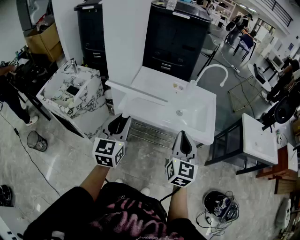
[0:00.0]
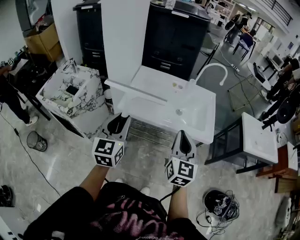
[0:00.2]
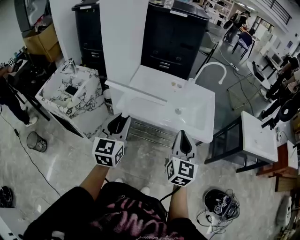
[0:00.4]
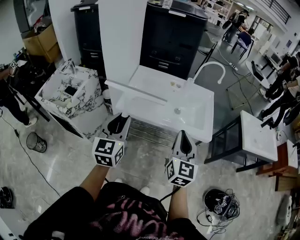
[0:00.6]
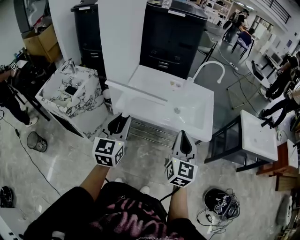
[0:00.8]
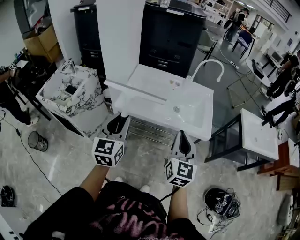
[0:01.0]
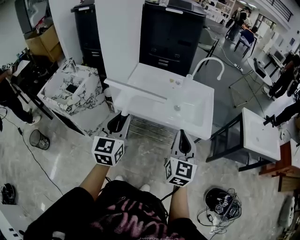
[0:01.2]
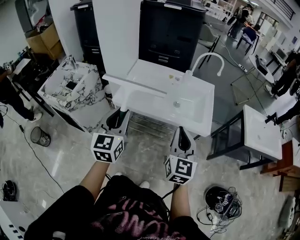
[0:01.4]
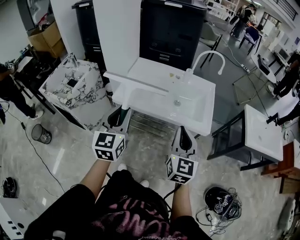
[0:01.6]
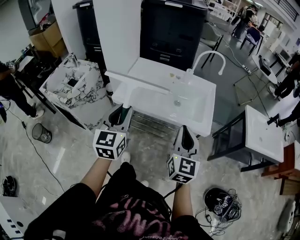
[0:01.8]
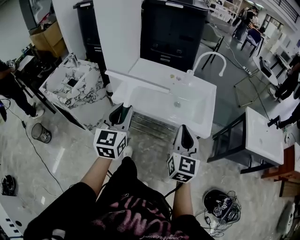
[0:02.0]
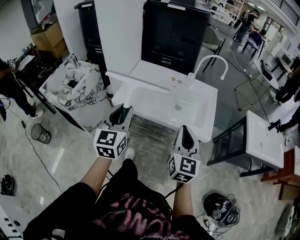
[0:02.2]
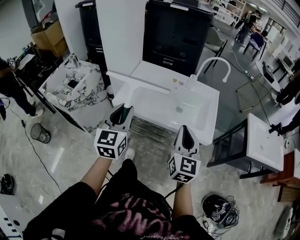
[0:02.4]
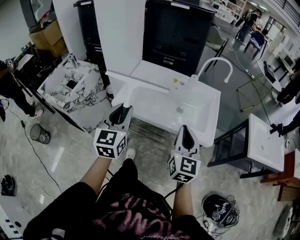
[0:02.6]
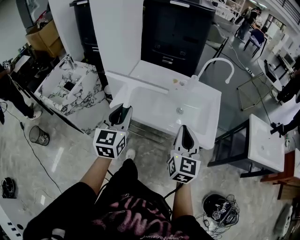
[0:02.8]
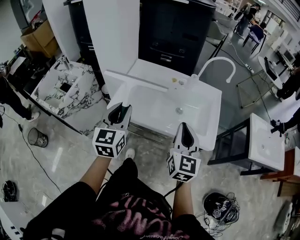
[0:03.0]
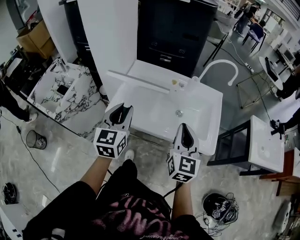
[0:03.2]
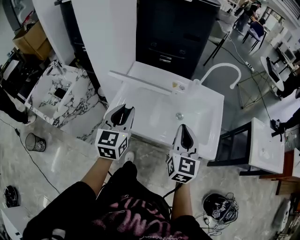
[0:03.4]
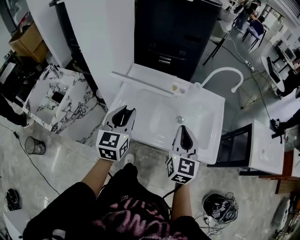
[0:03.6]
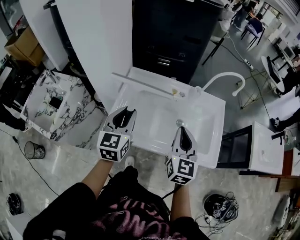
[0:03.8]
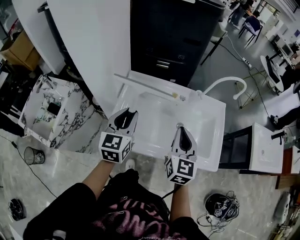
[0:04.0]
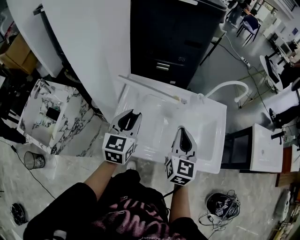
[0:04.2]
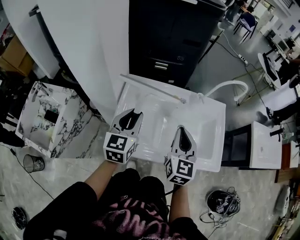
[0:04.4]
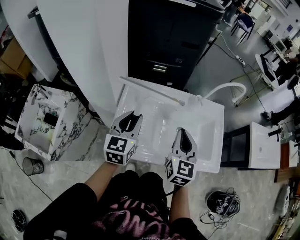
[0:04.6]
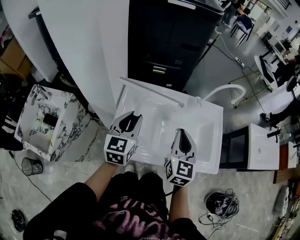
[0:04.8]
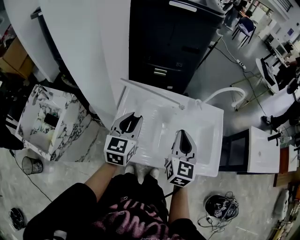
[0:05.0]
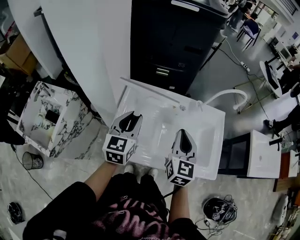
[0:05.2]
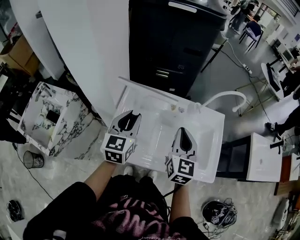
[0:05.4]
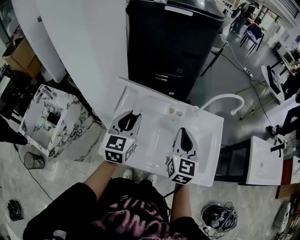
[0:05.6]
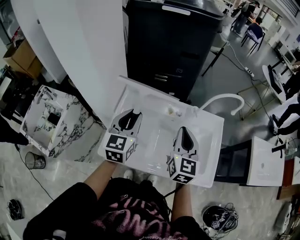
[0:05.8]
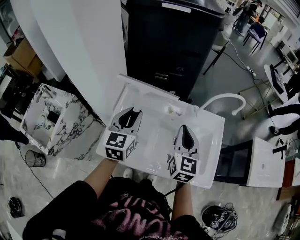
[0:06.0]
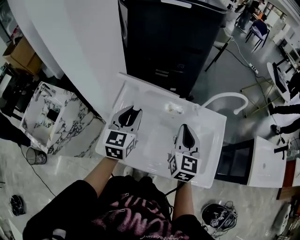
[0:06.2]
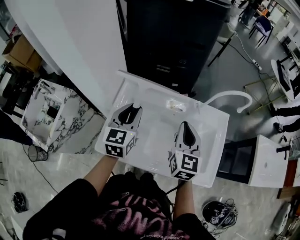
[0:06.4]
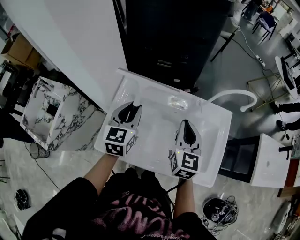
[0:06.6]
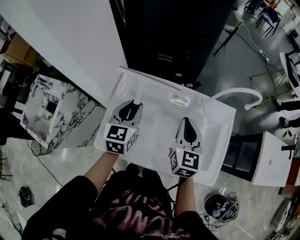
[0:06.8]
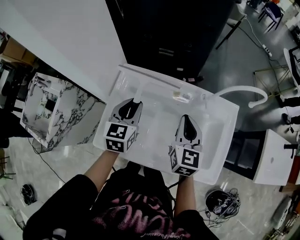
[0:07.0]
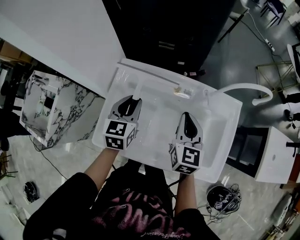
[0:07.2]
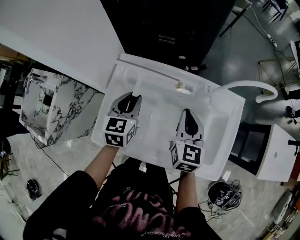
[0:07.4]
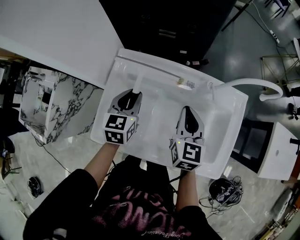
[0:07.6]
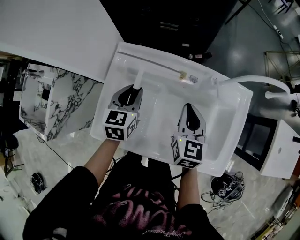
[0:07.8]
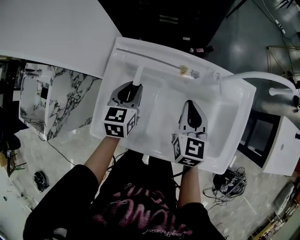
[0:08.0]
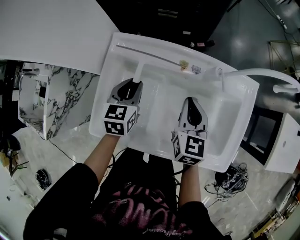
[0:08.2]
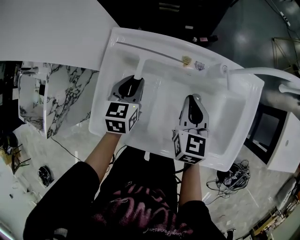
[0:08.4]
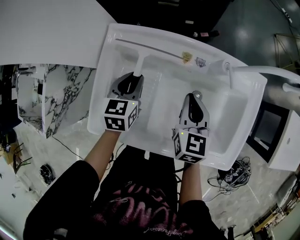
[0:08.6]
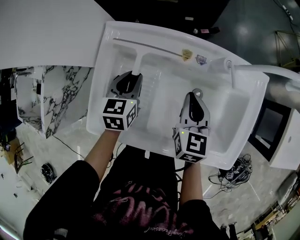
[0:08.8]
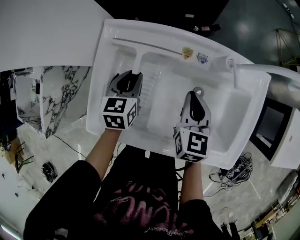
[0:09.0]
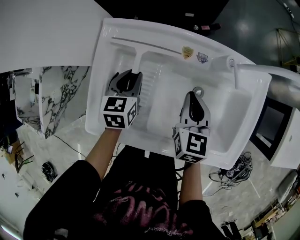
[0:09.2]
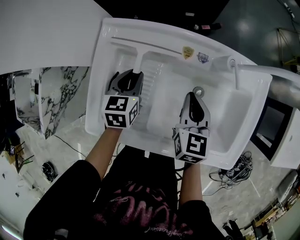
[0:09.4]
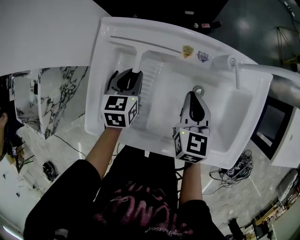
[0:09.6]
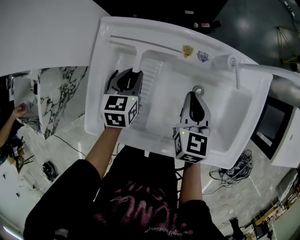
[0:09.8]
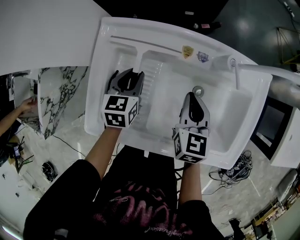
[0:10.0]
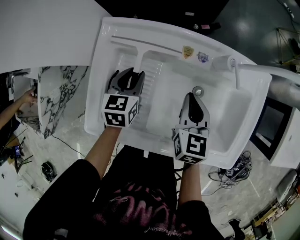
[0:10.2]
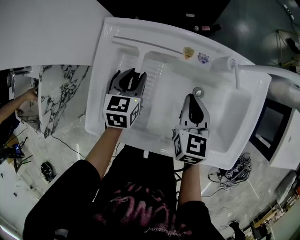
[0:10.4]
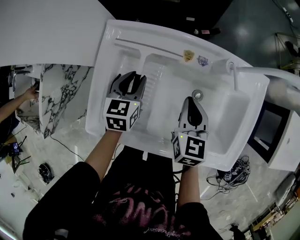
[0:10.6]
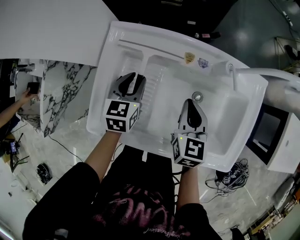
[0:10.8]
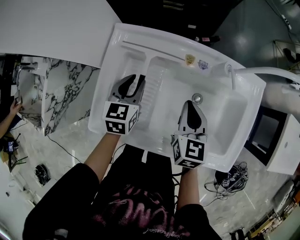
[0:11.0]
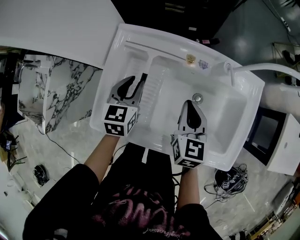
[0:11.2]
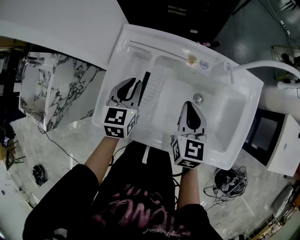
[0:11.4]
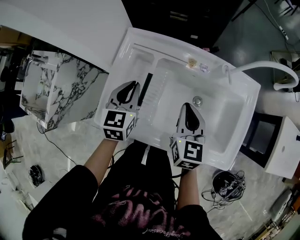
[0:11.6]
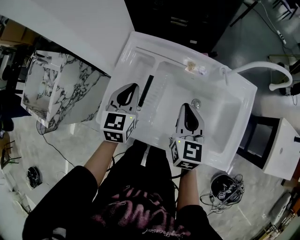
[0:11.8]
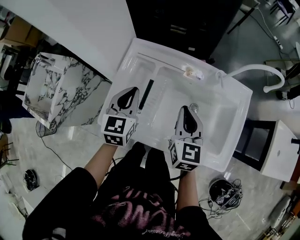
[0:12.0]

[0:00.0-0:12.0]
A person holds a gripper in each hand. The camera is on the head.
0:00.0 to 0:01.6: Both grippers move to the right, approximately 10 cm.
0:01.6 to 0:03.0: The two grippers go about 15 cm forward.
0:03.0 to 0:04.4: The left gripper travels forward by some 25 cm, while the right gripper is displaced forward and to the left by some 20 cm.
0:04.4 to 0:06.0: The right gripper shifts about 10 cm forward and to the right, while the left gripper travels forward by some 5 cm.
0:06.0 to 0:07.6: The left gripper travels downward by roughly 15 cm. The right gripper moves downward and forward, some 15 cm.
0:07.6 to 0:09.0: Both grippers travel together downward, roughly 10 cm.
0:09.0 to 0:10.4: The grippers make only small movements.
0:10.4 to 0:12.0: The grippers both shift upward and backward by some 15 cm. The left gripper closes up.

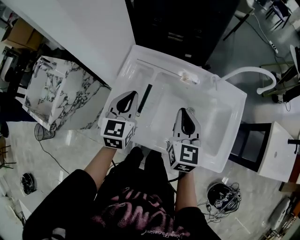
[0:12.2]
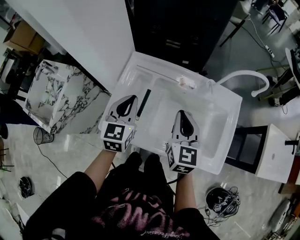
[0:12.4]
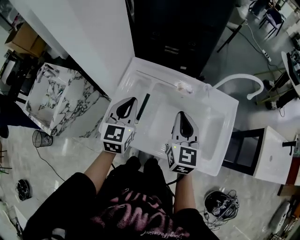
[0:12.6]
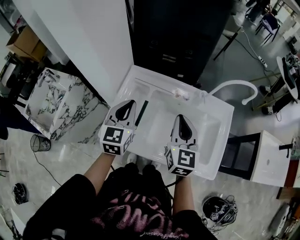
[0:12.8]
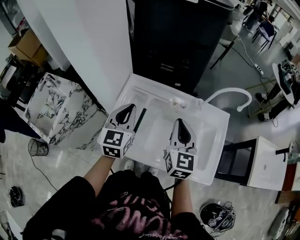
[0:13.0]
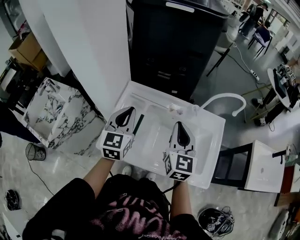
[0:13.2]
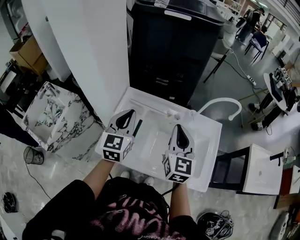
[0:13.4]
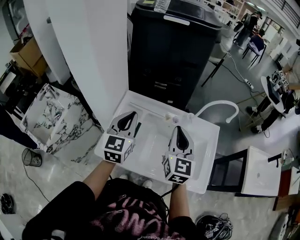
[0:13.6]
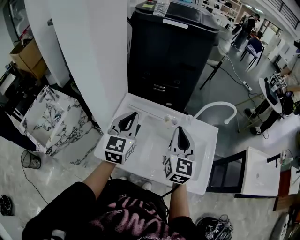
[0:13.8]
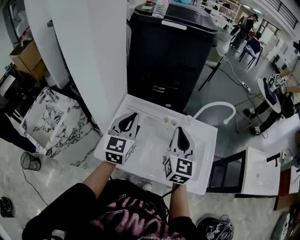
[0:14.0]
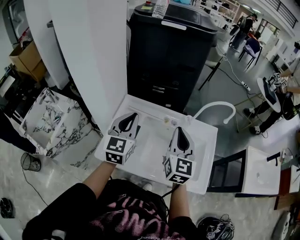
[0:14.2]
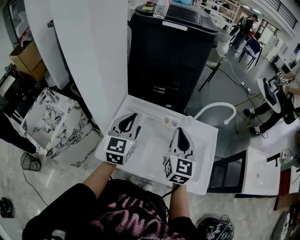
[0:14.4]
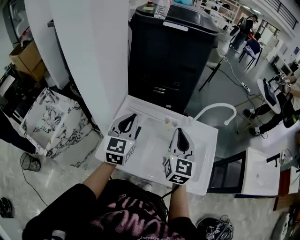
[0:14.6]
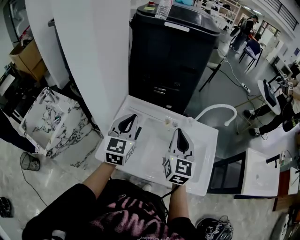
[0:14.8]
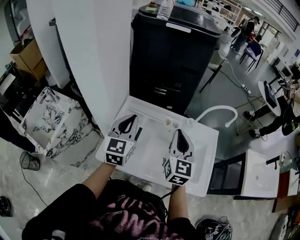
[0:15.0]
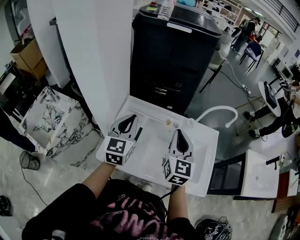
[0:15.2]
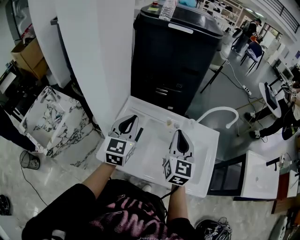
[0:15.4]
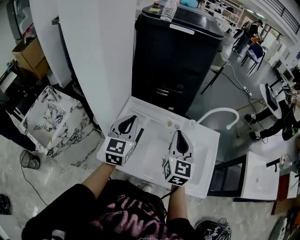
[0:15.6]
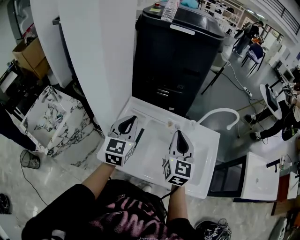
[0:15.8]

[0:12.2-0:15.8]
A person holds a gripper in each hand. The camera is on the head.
0:12.2 to 0:14.0: Both grippers move upward, some 15 cm.
0:14.0 to 0:15.8: The grippers make only small movements.

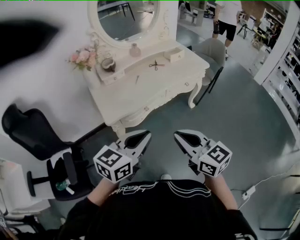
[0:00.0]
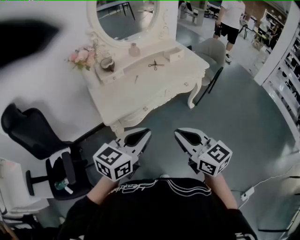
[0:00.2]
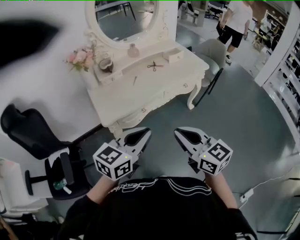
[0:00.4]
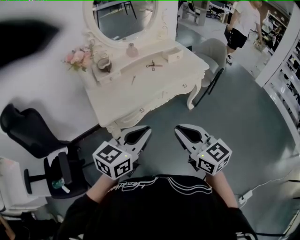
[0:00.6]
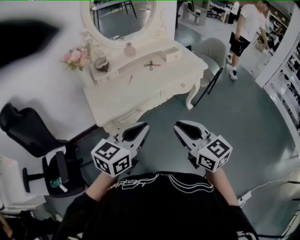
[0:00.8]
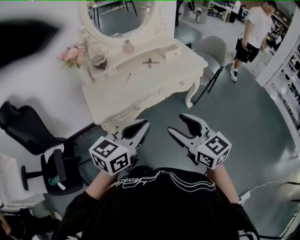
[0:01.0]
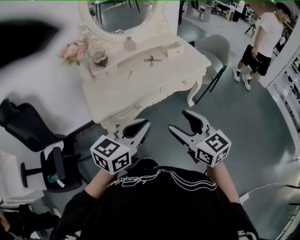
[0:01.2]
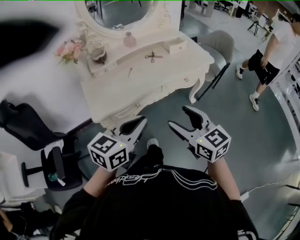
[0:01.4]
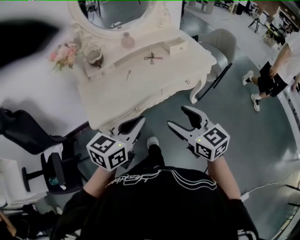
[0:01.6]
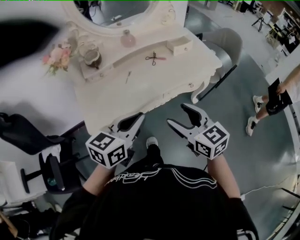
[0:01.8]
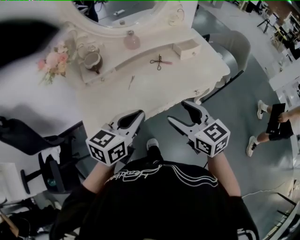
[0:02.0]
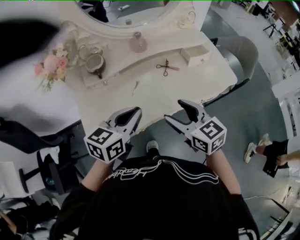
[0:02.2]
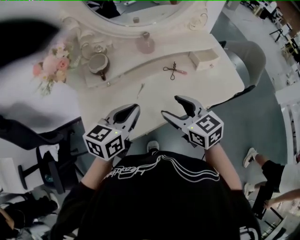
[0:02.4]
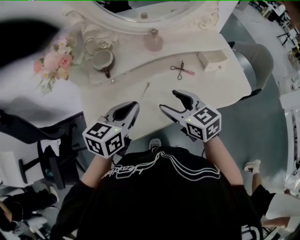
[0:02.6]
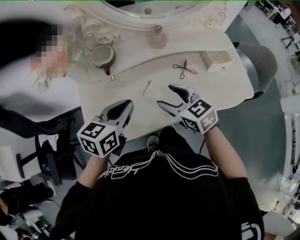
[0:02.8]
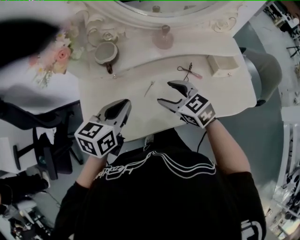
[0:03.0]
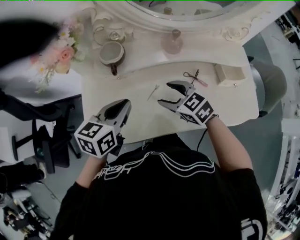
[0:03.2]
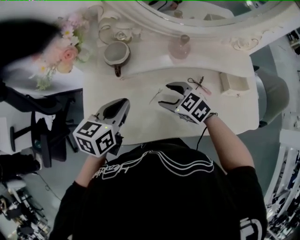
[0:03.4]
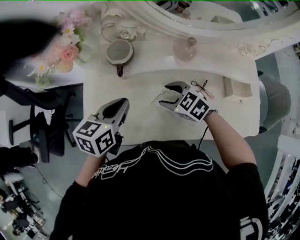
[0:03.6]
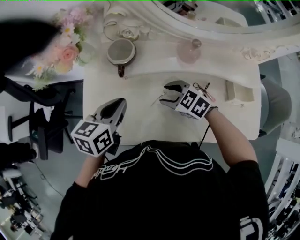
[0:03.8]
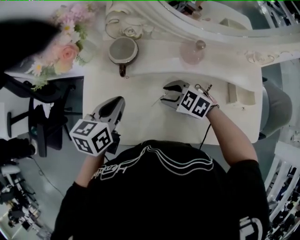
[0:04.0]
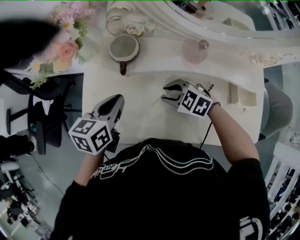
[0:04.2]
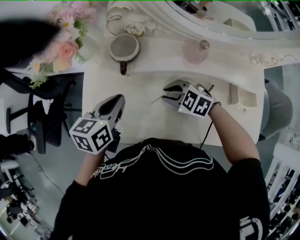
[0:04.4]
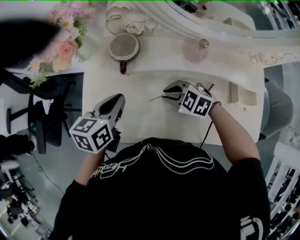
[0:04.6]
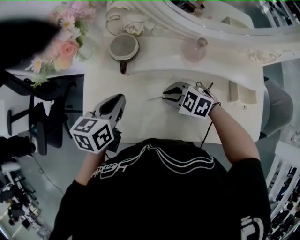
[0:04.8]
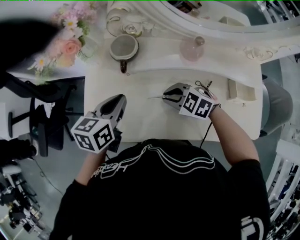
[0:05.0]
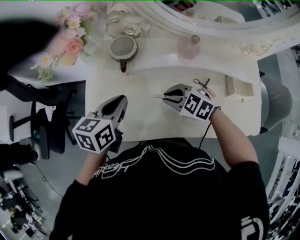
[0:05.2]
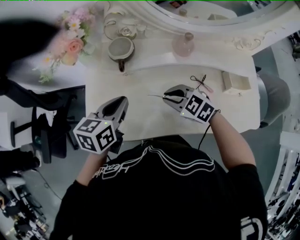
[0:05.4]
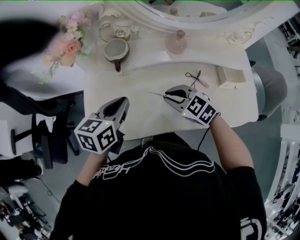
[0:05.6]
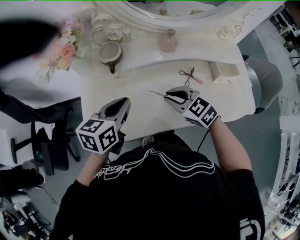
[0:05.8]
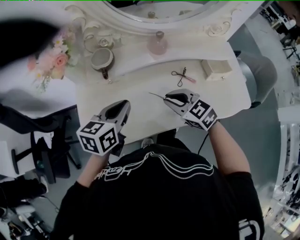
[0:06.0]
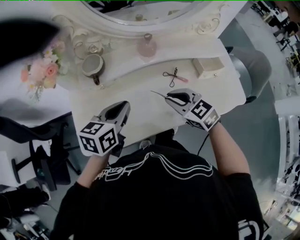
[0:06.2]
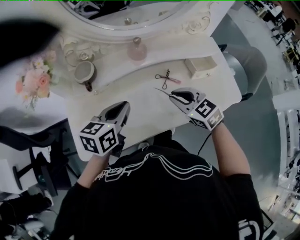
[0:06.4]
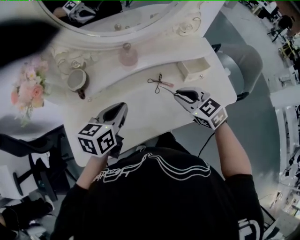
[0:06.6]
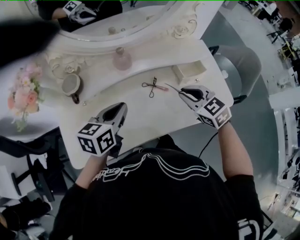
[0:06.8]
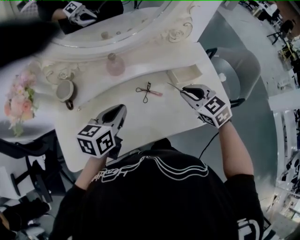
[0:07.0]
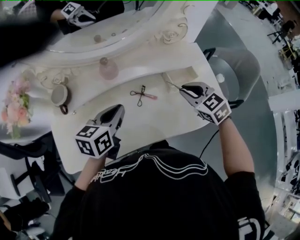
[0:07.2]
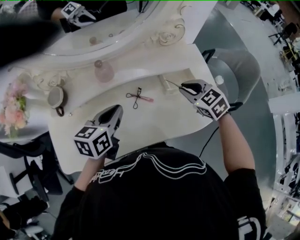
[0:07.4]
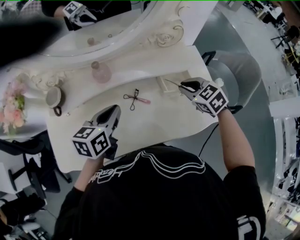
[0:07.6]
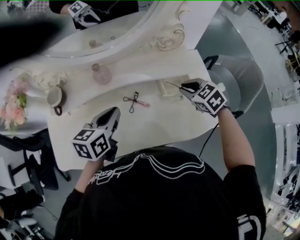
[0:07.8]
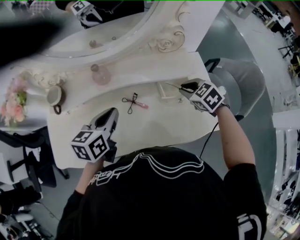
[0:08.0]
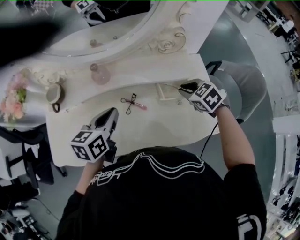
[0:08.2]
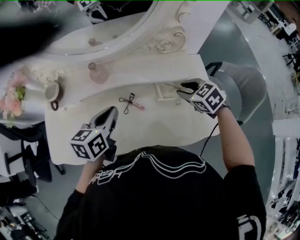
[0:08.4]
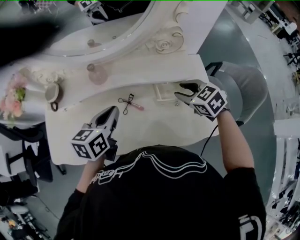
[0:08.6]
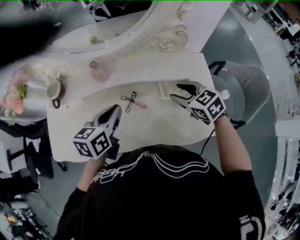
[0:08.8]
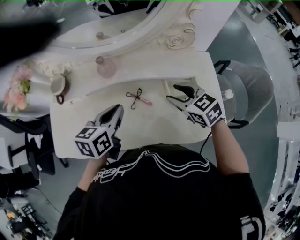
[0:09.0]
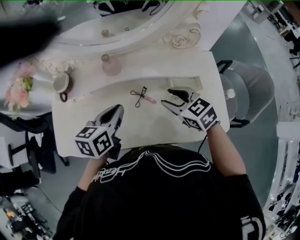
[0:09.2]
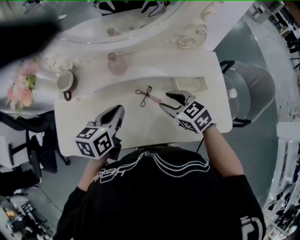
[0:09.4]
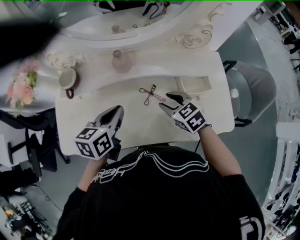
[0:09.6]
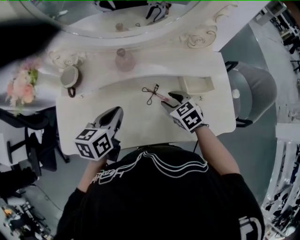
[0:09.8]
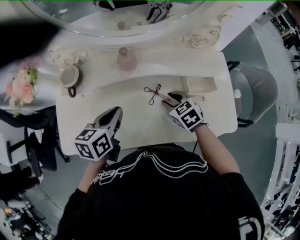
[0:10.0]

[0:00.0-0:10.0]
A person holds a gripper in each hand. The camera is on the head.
0:00.0 to 0:01.4: The grippers both shift forward and to the right by about 15 cm. The right gripper opens.
0:01.4 to 0:02.8: The grippers both shift forward by about 35 cm. The left gripper rotates approximately 30 degrees, while the right gripper rotates roughly 30 degrees.
0:02.8 to 0:04.2: The right gripper travels downward by some 10 cm, swivels approximately 50 degrees, and closes up, while the left gripper changes place by some 10 cm, and turns by about 30 degrees.
0:04.2 to 0:05.8: The left gripper goes approximately 5 cm backward, while the right gripper goes about 10 cm upward and backward, and rotates approximately 30 degrees.
0:05.8 to 0:07.2: The grippers both shift to the right by roughly 25 cm. The right gripper swivels some 20 degrees.
0:07.2 to 0:08.6: The right gripper moves to the right and forward, about 10 cm, while the left gripper goes some 5 cm to the right.
0:08.6 to 0:10.0: The left gripper travels to the left by roughly 10 cm. The right gripper heads to the left and downward, covering some 20 cm.
